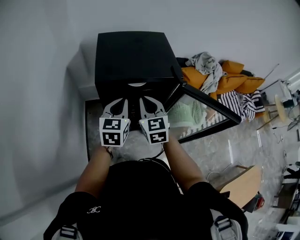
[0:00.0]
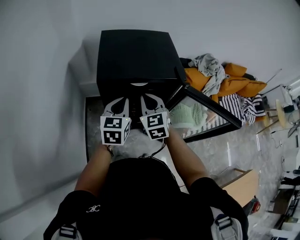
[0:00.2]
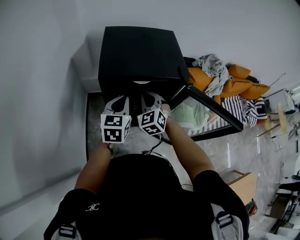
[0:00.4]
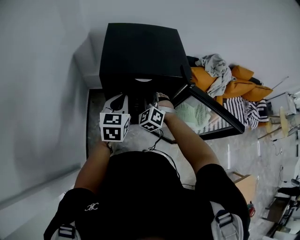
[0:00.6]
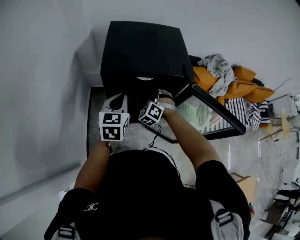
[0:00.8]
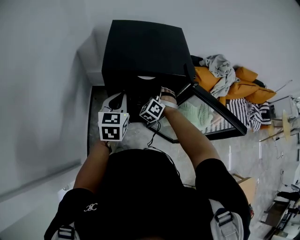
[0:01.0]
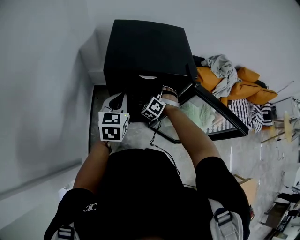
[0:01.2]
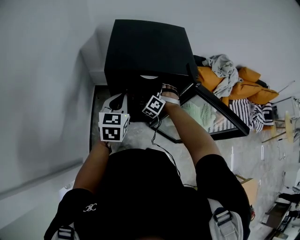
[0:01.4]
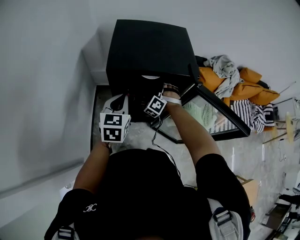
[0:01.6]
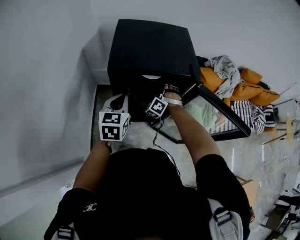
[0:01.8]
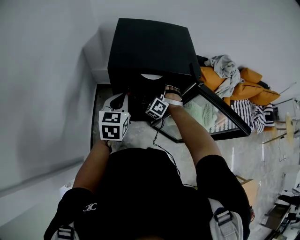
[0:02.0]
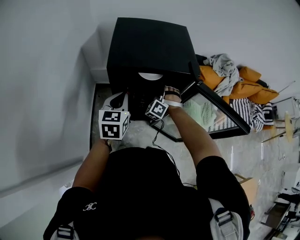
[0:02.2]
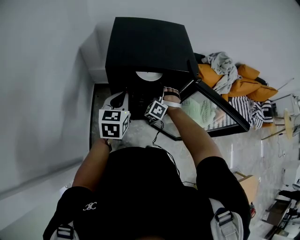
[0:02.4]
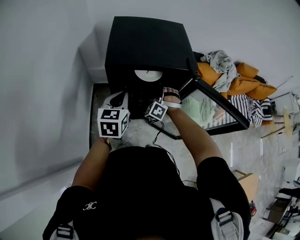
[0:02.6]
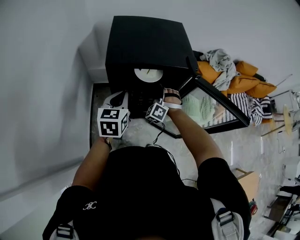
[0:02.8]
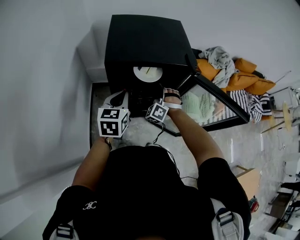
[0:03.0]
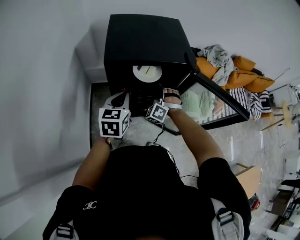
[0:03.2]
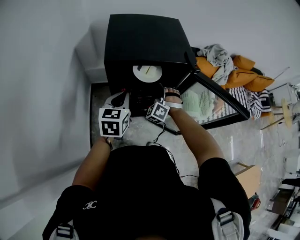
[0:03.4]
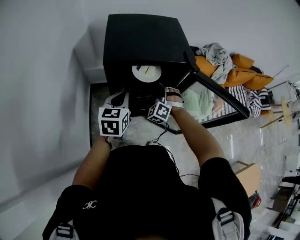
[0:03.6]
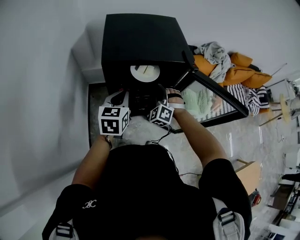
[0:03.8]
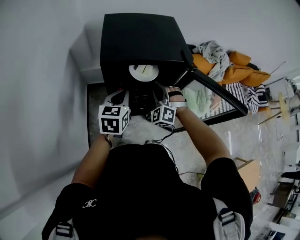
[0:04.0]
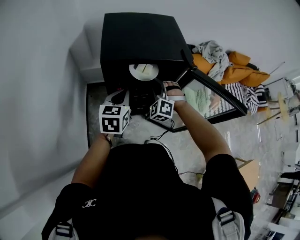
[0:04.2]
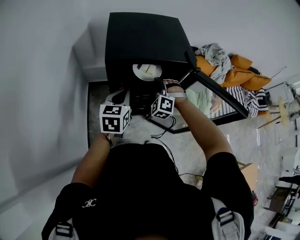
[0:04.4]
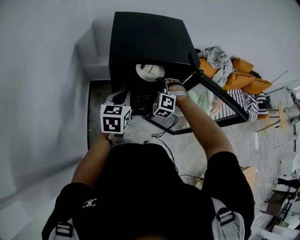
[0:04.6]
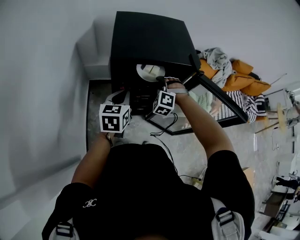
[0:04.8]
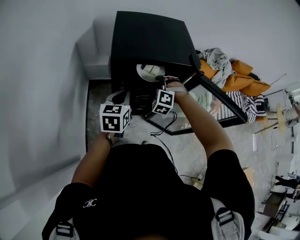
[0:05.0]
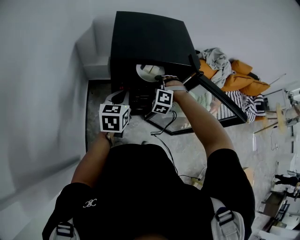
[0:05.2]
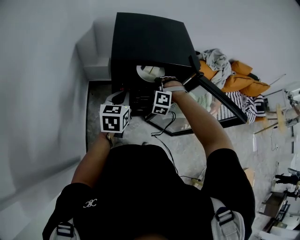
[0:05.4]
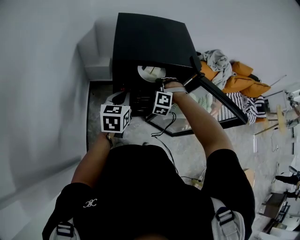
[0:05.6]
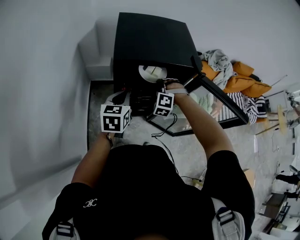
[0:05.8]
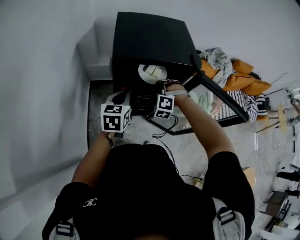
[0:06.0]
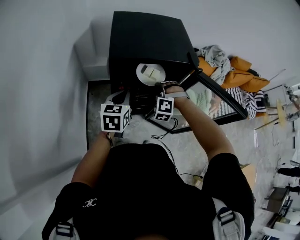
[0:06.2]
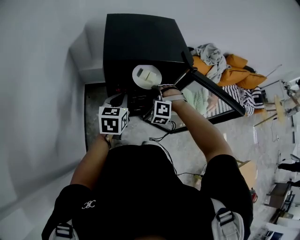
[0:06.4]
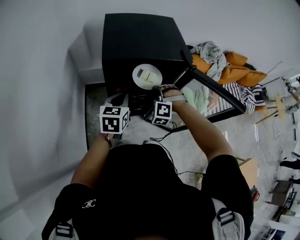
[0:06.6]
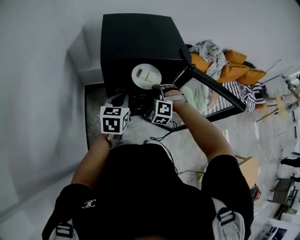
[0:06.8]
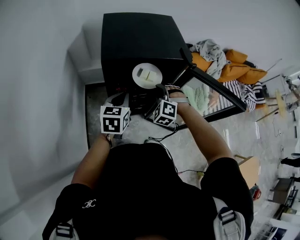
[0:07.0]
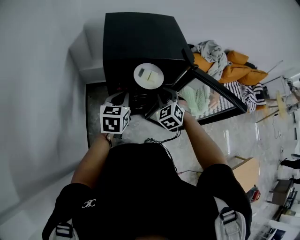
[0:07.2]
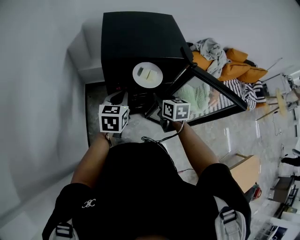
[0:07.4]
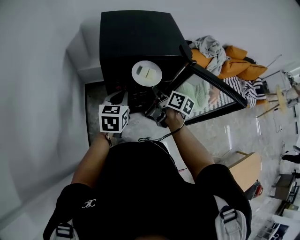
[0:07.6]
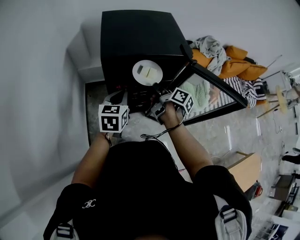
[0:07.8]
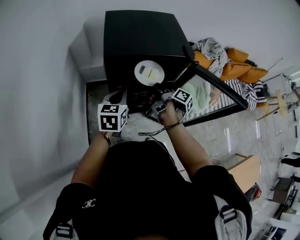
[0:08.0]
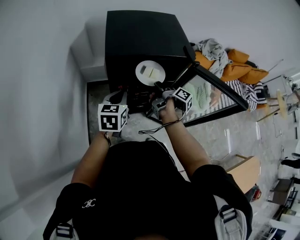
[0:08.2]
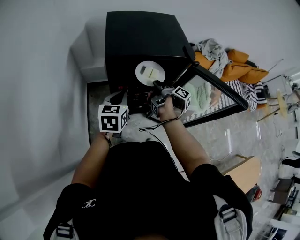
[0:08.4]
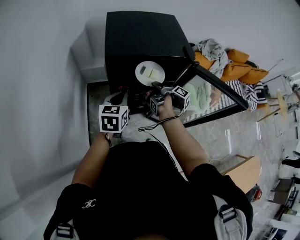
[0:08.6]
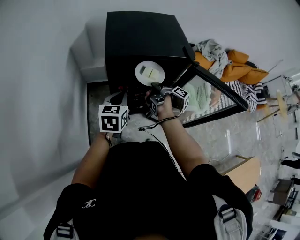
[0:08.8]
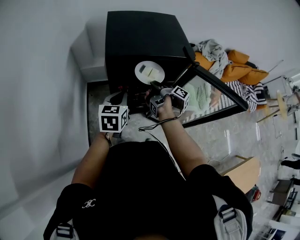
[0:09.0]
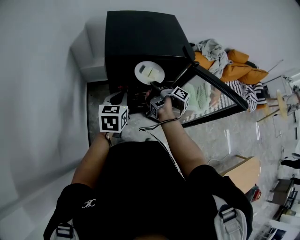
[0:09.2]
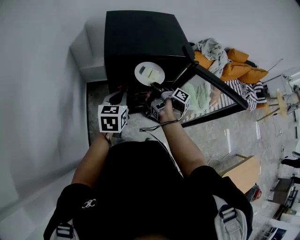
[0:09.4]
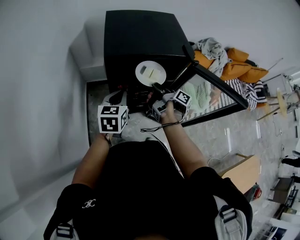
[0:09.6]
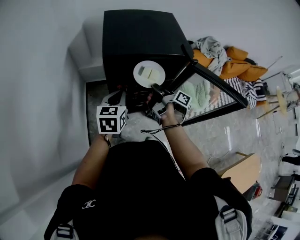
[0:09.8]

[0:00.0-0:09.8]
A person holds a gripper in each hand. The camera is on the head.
0:00.0 to 0:01.4: The right gripper shifts about 20 cm downward and forward, rolls counterclockwise, seen from behind, by approximately 60 degrees, and opens.
0:01.4 to 0:02.8: The right gripper moves backward, approximately 5 cm.
0:02.8 to 0:04.2: The right gripper moves approximately 5 cm.
0:04.2 to 0:05.6: The right gripper turns by approximately 20 degrees.
0:05.6 to 0:07.0: The right gripper moves backward, roughly 5 cm.
0:07.0 to 0:08.4: The right gripper rotates around the line of its fingers by roughly 160 degrees, clockwise from behind.
0:08.4 to 0:09.8: The grippers stay close to where they were, moving slightly.

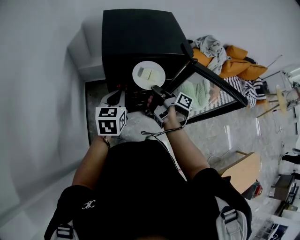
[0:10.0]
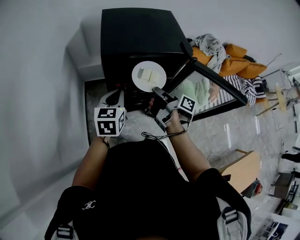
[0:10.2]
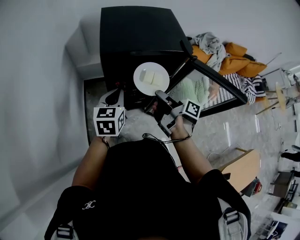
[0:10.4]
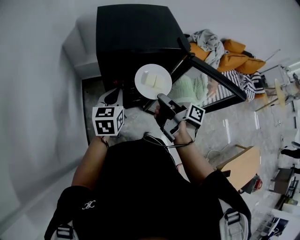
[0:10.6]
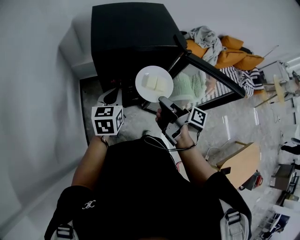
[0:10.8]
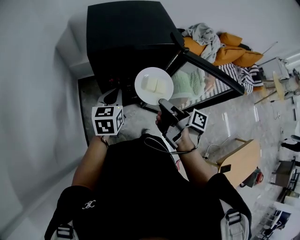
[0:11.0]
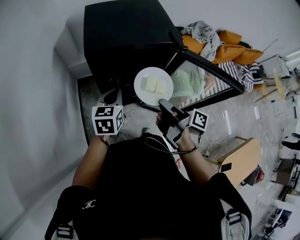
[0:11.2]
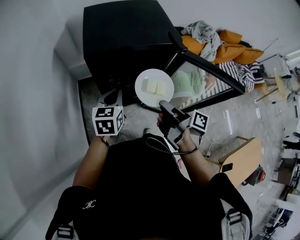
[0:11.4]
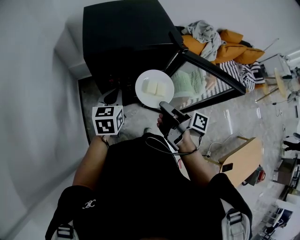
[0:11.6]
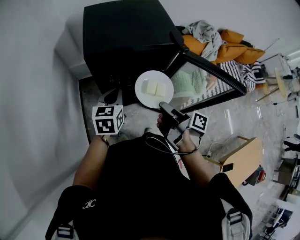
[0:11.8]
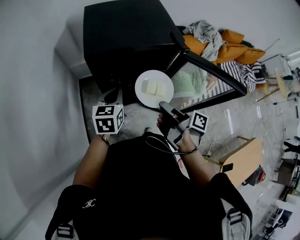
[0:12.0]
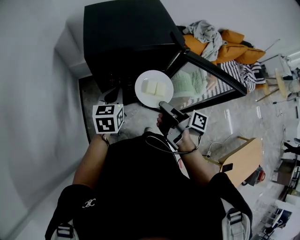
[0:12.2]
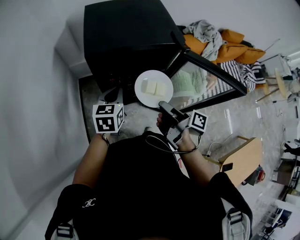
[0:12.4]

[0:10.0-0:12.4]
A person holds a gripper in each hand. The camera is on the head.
0:10.0 to 0:11.2: The right gripper heads backward and upward, covering approximately 15 cm.
0:11.2 to 0:12.4: The grippers make only small movements.

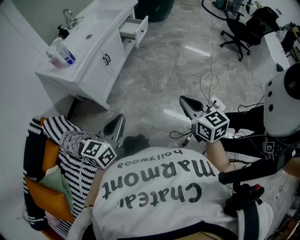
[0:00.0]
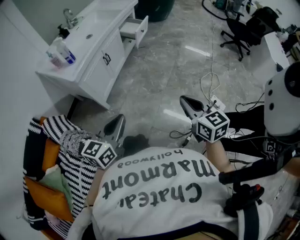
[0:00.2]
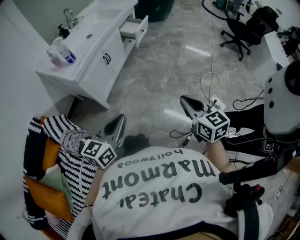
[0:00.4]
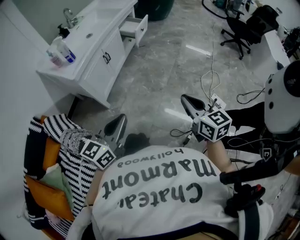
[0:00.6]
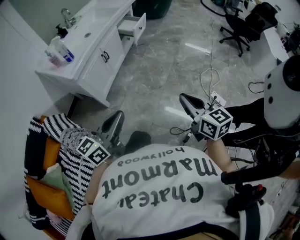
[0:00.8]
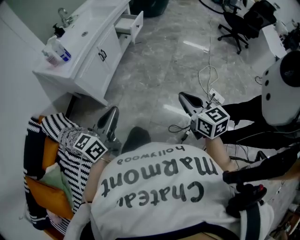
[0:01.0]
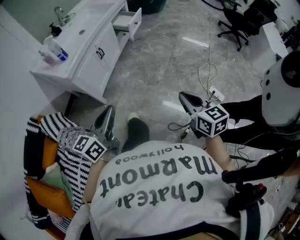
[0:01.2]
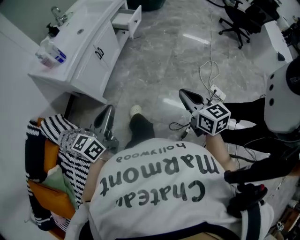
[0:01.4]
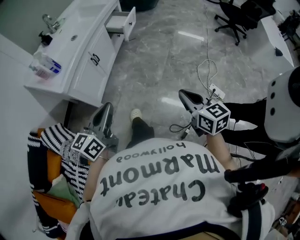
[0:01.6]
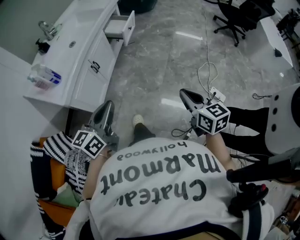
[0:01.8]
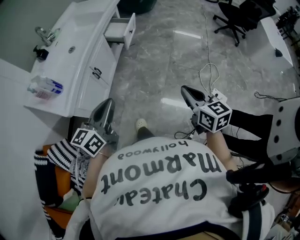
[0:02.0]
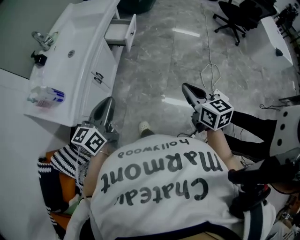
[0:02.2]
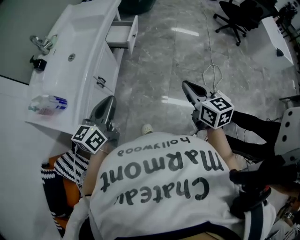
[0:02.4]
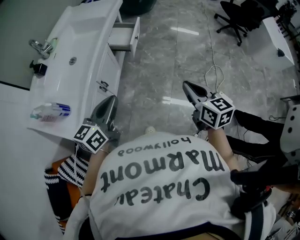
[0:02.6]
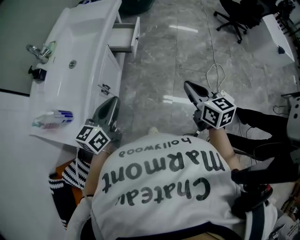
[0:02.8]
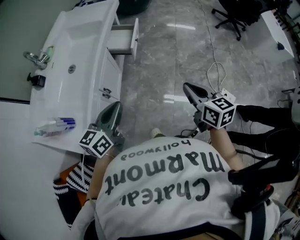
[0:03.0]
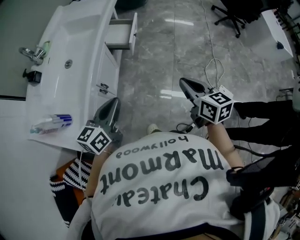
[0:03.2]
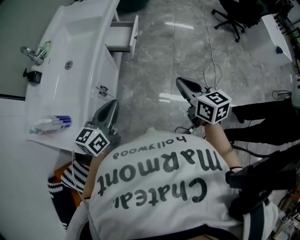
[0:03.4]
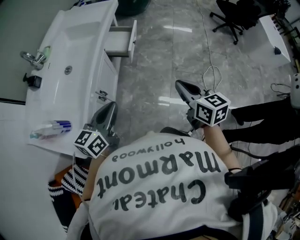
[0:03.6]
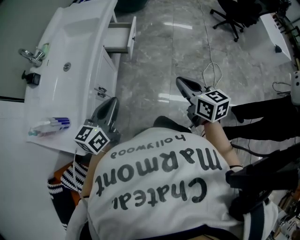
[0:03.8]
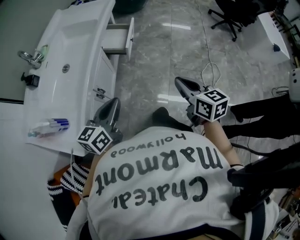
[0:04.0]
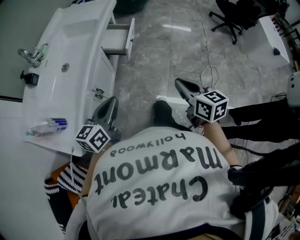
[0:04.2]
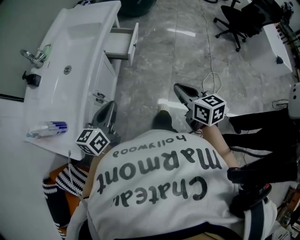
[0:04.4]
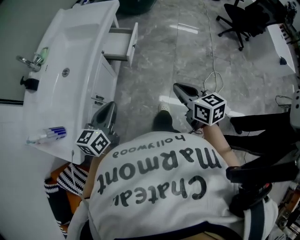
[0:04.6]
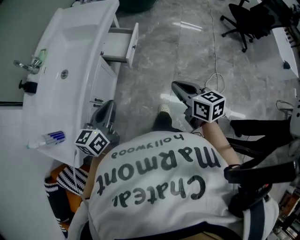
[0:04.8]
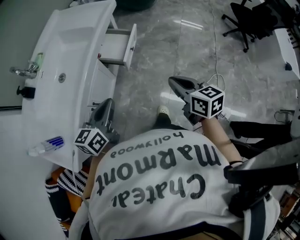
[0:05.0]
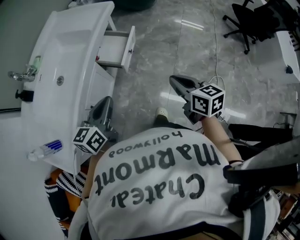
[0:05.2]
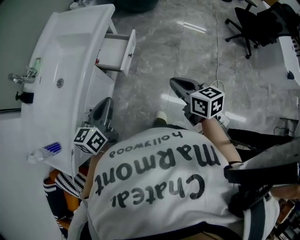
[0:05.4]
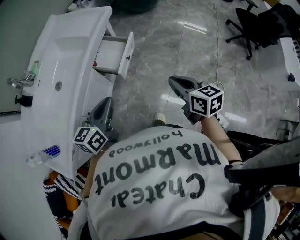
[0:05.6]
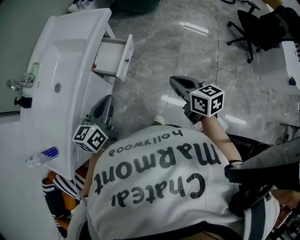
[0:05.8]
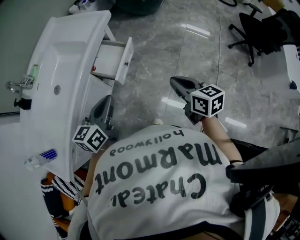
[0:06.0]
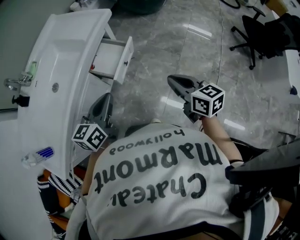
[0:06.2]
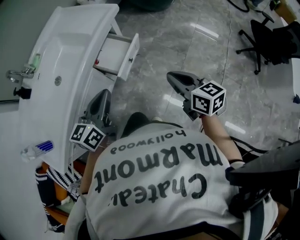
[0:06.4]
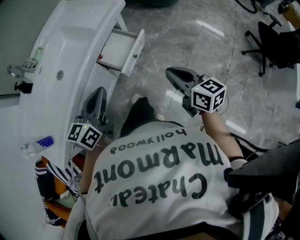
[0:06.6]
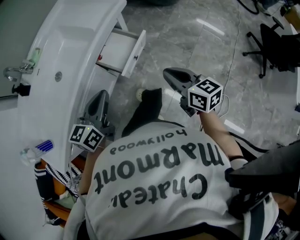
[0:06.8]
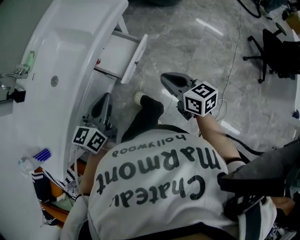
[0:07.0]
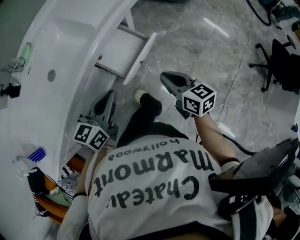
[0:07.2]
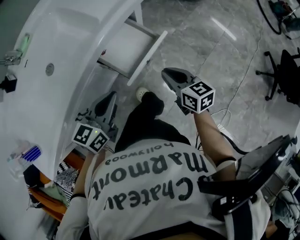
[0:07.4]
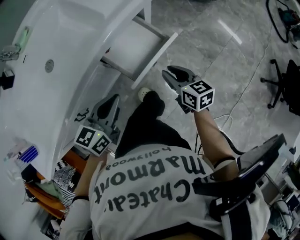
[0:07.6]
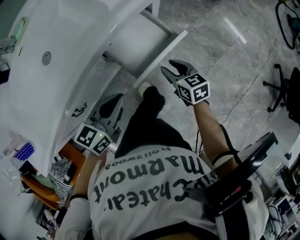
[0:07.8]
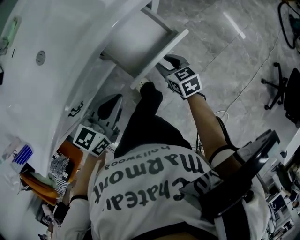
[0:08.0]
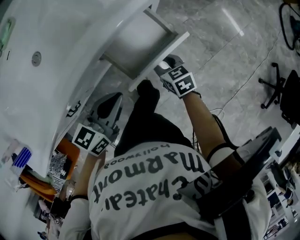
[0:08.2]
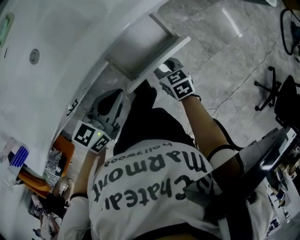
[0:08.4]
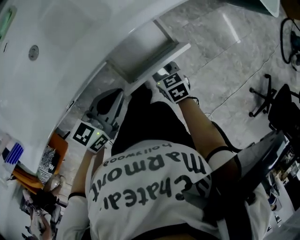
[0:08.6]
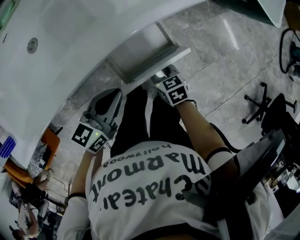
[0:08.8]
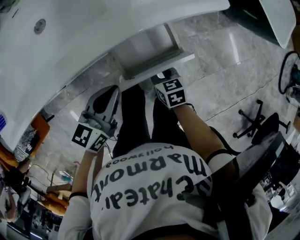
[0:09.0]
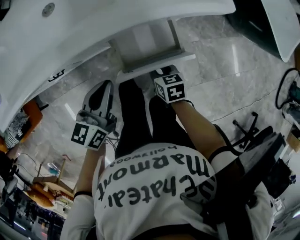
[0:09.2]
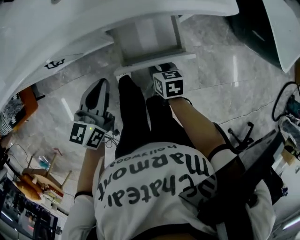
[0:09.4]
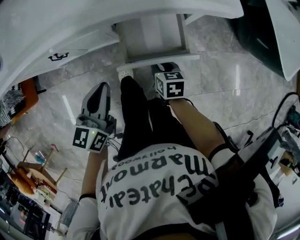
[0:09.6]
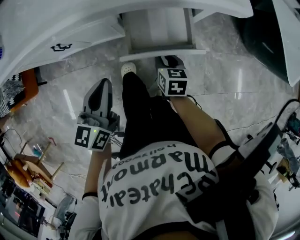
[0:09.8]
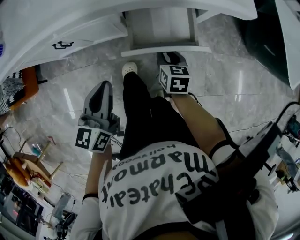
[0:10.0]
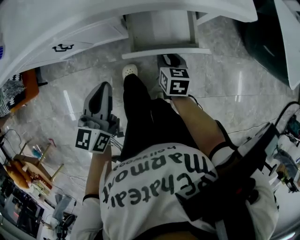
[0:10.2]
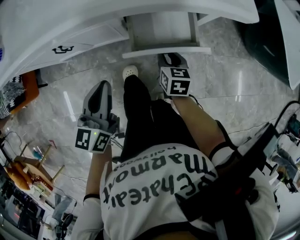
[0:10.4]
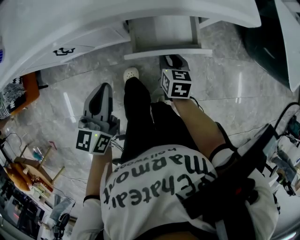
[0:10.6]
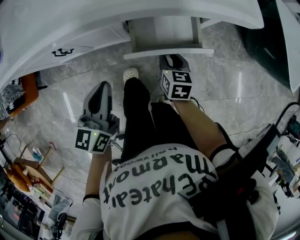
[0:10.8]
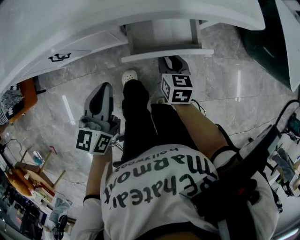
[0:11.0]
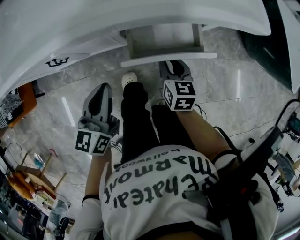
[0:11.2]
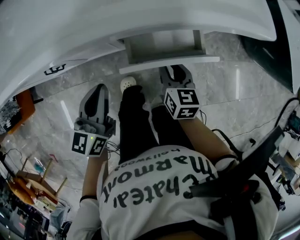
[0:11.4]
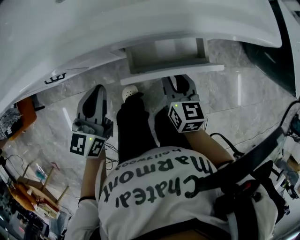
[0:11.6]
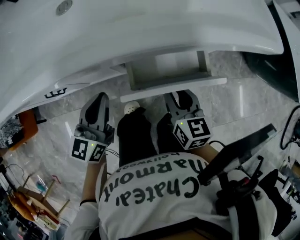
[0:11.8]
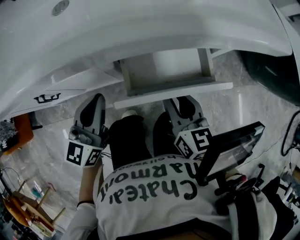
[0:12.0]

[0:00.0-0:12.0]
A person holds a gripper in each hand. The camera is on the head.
0:00.0 to 0:01.6: The left gripper moves forward, roughly 10 cm. Meanwhile the right gripper moves forward, about 5 cm.
0:01.6 to 0:03.0: The left gripper moves forward, about 30 cm. Meanwhile the right gripper travels forward and to the left by approximately 30 cm.
0:03.0 to 0:04.4: The right gripper moves forward, some 5 cm.
0:04.4 to 0:06.0: Both grippers travel together forward and to the right, about 25 cm.
0:06.0 to 0:07.6: The right gripper is displaced forward, downward and to the left by roughly 35 cm, turns by some 20 degrees, and opens its fingers. The left gripper heads downward and forward, covering approximately 20 cm.
0:07.6 to 0:09.0: The left gripper changes place by roughly 5 cm, and turns by some 20 degrees. The right gripper is displaced downward and forward by approximately 10 cm, and changes its angle by approximately 30 degrees.
0:09.0 to 0:10.4: The left gripper is displaced backward and to the left by approximately 10 cm, and swivels about 40 degrees.
0:10.4 to 0:12.0: The right gripper changes its angle by about 20 degrees, while the left gripper heads forward and downward, covering some 15 cm, and rotates about 20 degrees.
